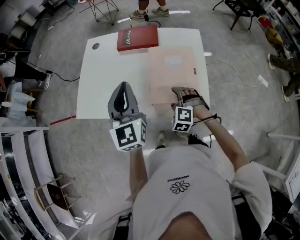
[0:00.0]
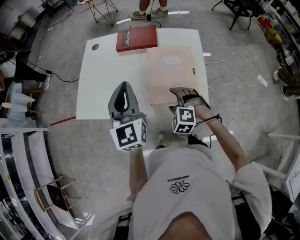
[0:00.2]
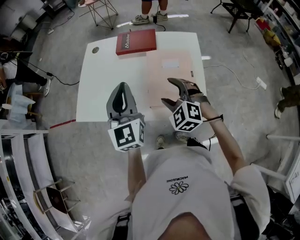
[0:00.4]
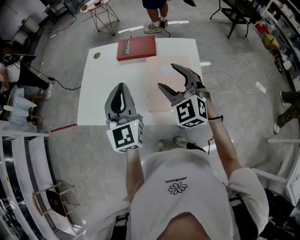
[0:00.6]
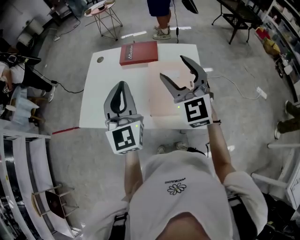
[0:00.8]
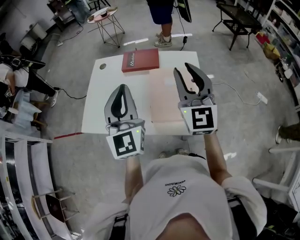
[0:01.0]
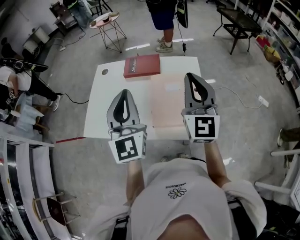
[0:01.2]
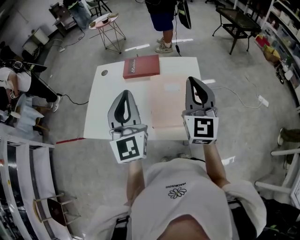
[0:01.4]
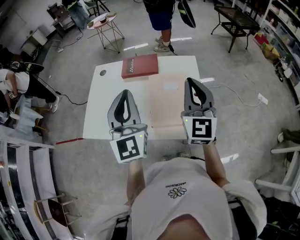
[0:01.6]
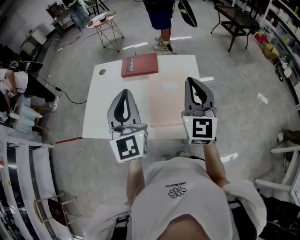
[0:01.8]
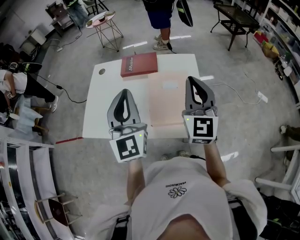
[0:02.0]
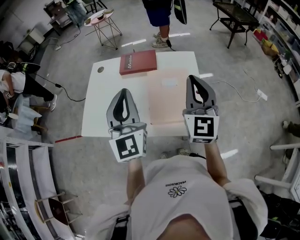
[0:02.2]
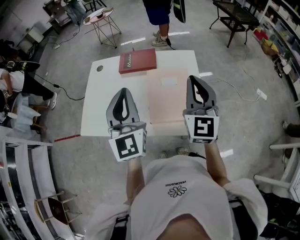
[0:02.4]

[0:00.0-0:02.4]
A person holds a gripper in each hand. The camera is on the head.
0.0 to 1.2 s: The left gripper moves upward, some 10 cm. Meanwhile the right gripper is displaced upward by about 35 cm, angles its fingers upward, by about 70 degrees, and closes its fingers.
1.2 to 2.4 s: There are only small adjustments of the grippers.

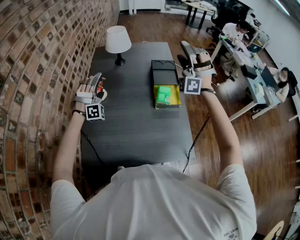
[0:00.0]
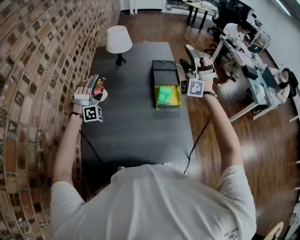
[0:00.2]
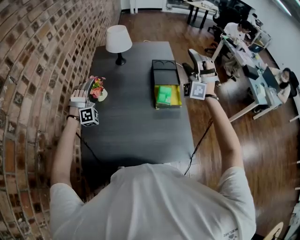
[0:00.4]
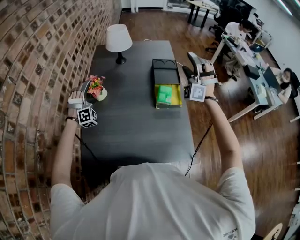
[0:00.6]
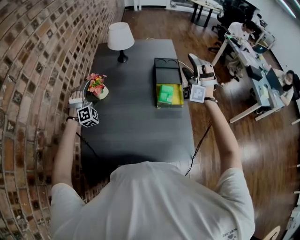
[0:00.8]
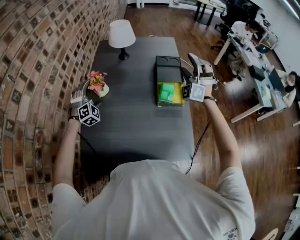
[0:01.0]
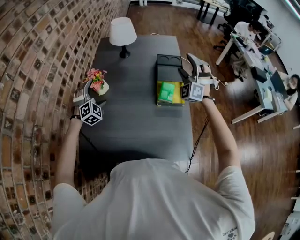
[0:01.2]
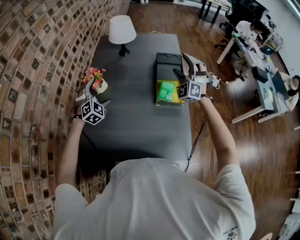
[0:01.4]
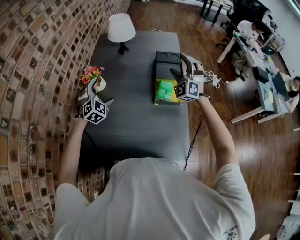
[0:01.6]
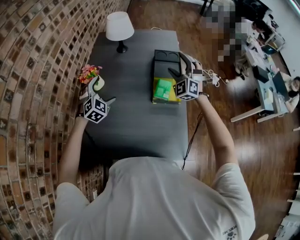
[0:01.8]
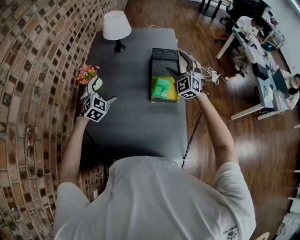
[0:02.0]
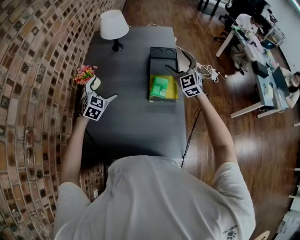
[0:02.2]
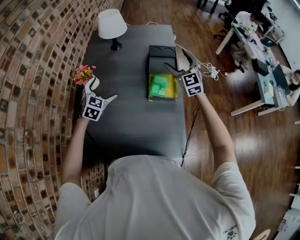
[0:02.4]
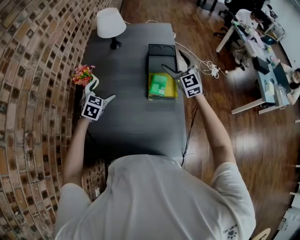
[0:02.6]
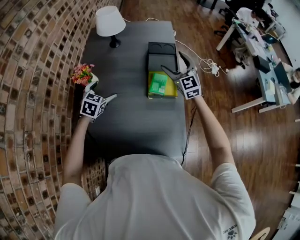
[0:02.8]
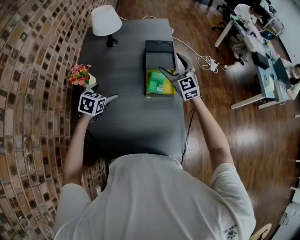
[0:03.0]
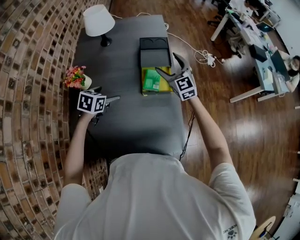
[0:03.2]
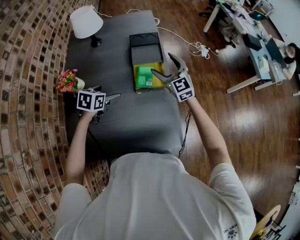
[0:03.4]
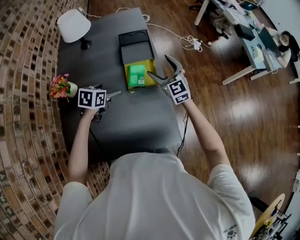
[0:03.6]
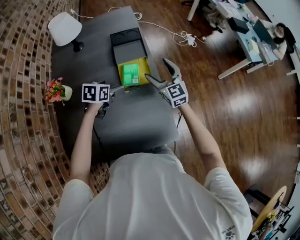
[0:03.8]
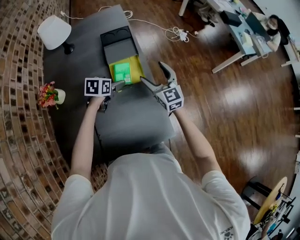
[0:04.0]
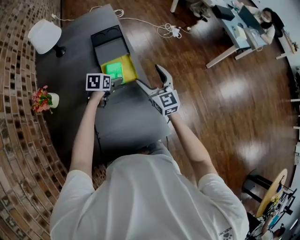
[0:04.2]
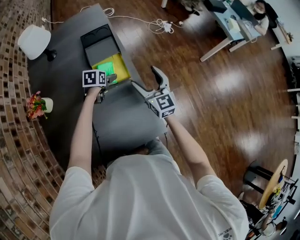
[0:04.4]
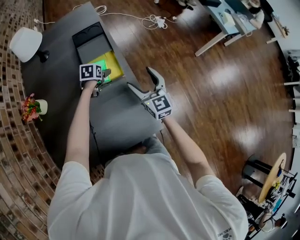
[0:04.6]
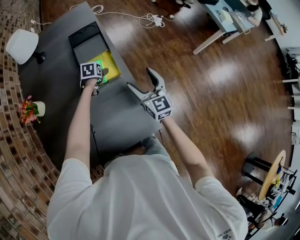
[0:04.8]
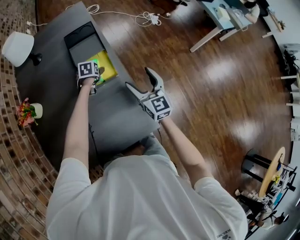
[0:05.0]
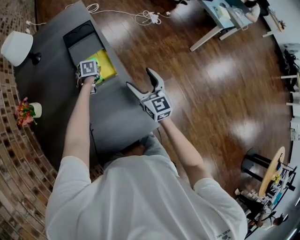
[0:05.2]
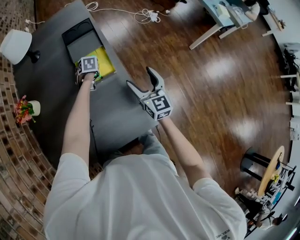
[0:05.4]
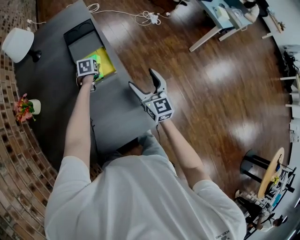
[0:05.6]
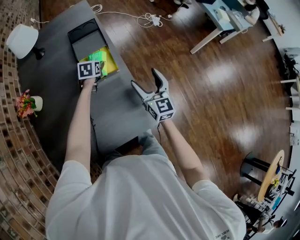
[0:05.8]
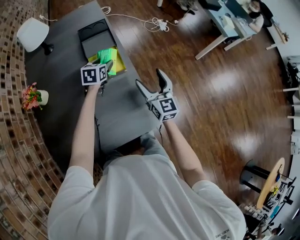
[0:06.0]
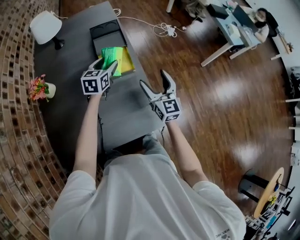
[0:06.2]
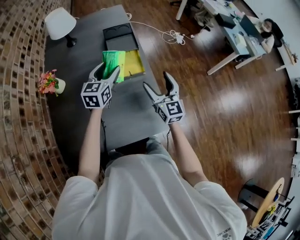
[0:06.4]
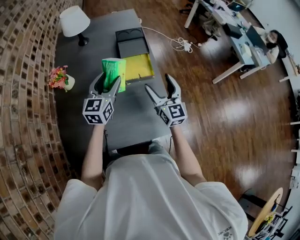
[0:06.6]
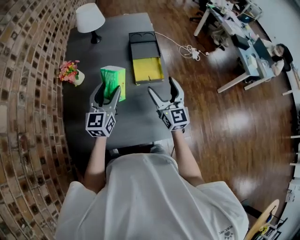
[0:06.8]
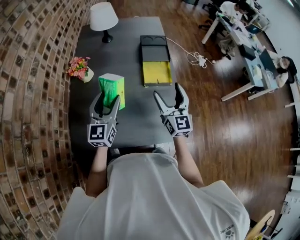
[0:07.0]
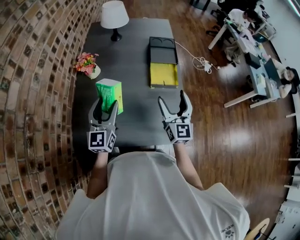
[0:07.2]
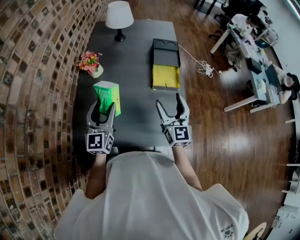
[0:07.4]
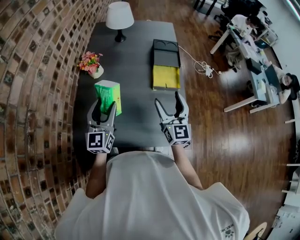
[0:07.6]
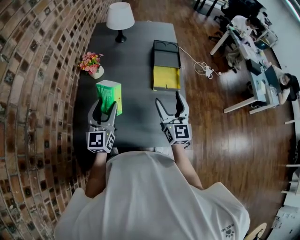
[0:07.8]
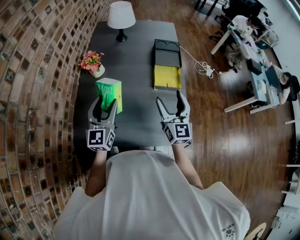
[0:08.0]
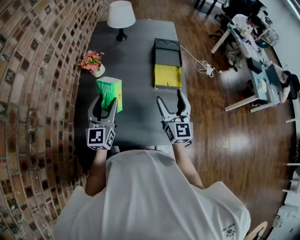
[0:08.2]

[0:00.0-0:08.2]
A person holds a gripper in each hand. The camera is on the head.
0.0 to 1.6 s: The right gripper shifts approximately 15 cm downward, and rotates approximately 40 degrees, while the left gripper moves downward, some 5 cm, and rolls counterclockwise, seen from behind, by some 40 degrees.
1.6 to 3.2 s: The left gripper shifts some 10 cm to the right and downward, and rolls counterclockwise, seen from behind, by about 40 degrees. Meanwhile the right gripper is displaced downward by roughly 5 cm, and rolls clockwise, seen from behind, by some 50 degrees.
3.2 to 5.0 s: The left gripper travels forward, downward and to the right by about 30 cm, while the right gripper moves to the right, backward and downward, approximately 20 cm, and turns by some 30 degrees.
5.0 to 6.6 s: The right gripper goes about 15 cm to the left, upward and backward. Meanwhile the left gripper travels upward and backward by about 35 cm, angles its fingers upward, by some 60 degrees, and closes up.
6.6 to 8.2 s: The left gripper heads to the left and backward, covering about 25 cm, and changes its angle by approximately 20 degrees. Meanwhile the right gripper is displaced to the left by roughly 10 cm.

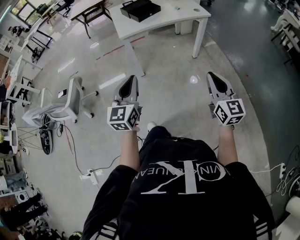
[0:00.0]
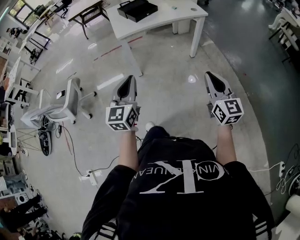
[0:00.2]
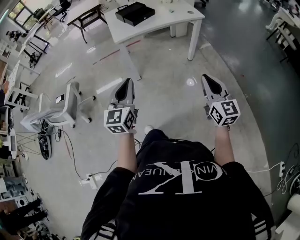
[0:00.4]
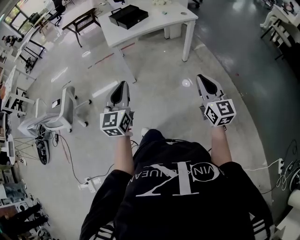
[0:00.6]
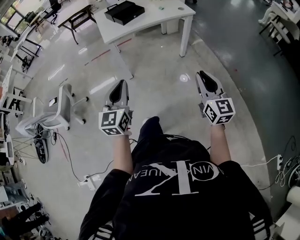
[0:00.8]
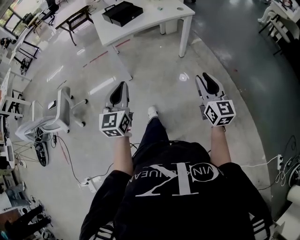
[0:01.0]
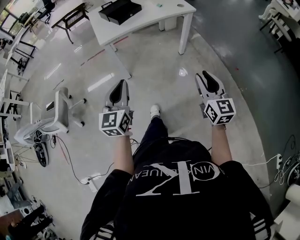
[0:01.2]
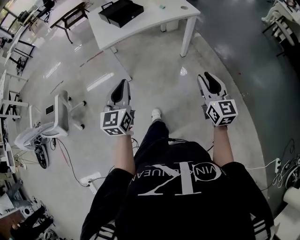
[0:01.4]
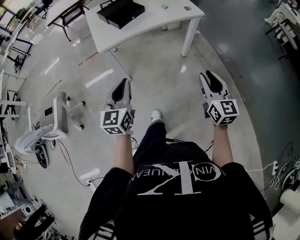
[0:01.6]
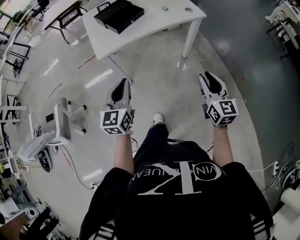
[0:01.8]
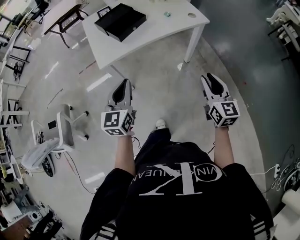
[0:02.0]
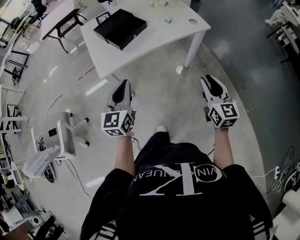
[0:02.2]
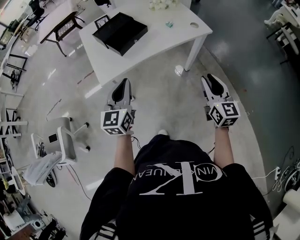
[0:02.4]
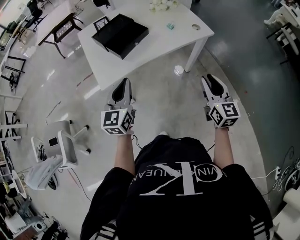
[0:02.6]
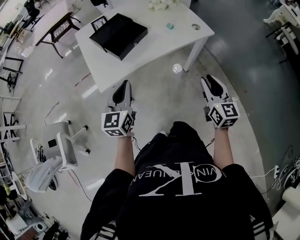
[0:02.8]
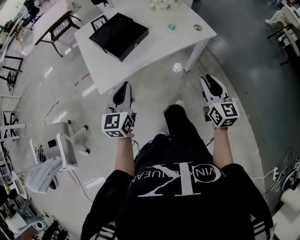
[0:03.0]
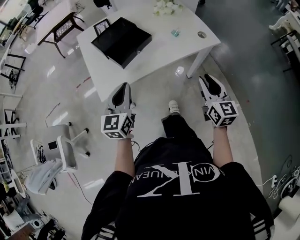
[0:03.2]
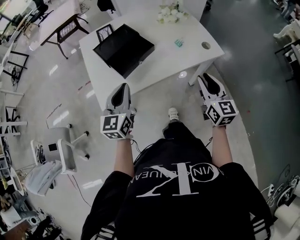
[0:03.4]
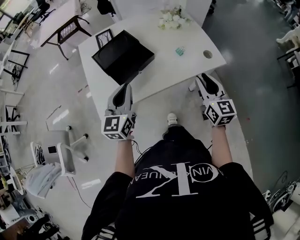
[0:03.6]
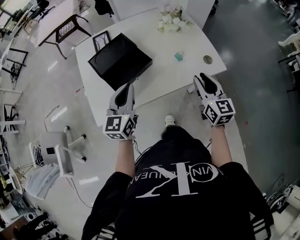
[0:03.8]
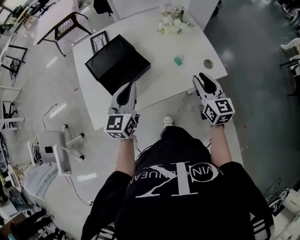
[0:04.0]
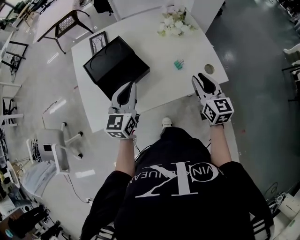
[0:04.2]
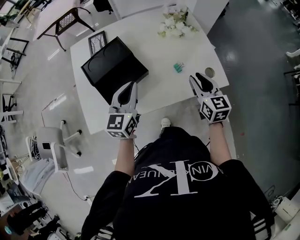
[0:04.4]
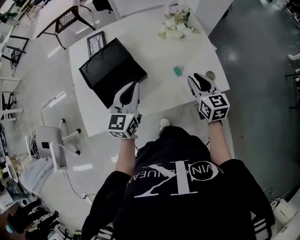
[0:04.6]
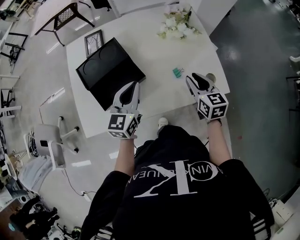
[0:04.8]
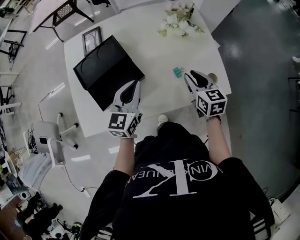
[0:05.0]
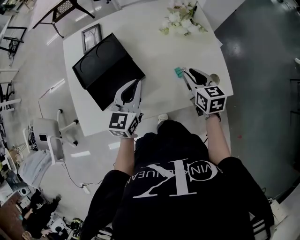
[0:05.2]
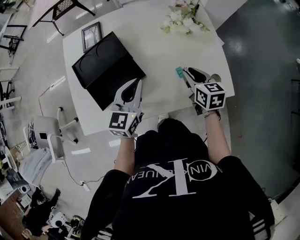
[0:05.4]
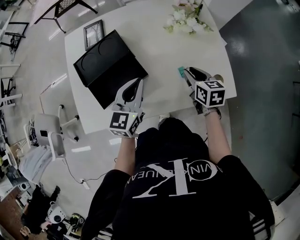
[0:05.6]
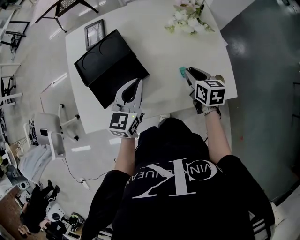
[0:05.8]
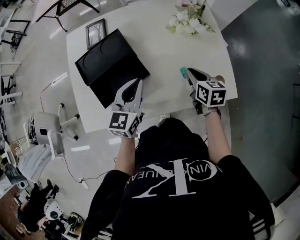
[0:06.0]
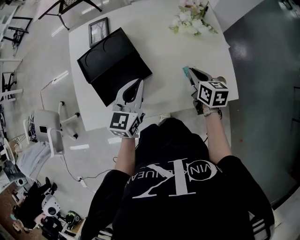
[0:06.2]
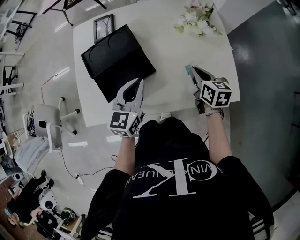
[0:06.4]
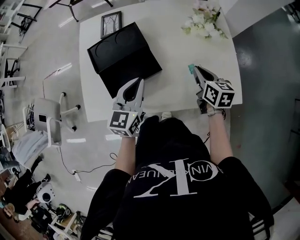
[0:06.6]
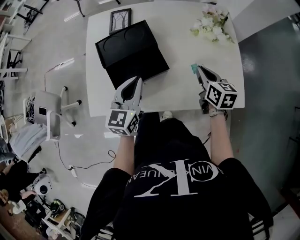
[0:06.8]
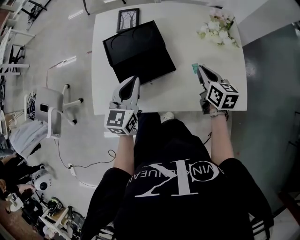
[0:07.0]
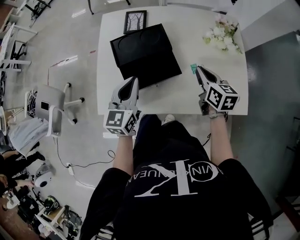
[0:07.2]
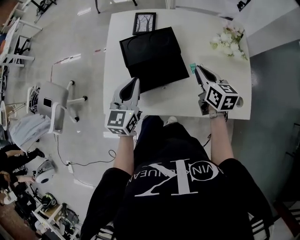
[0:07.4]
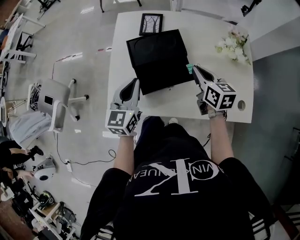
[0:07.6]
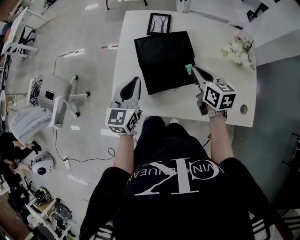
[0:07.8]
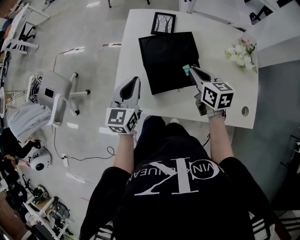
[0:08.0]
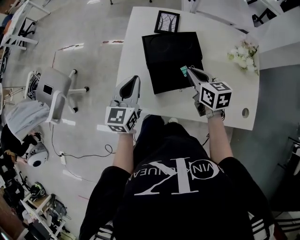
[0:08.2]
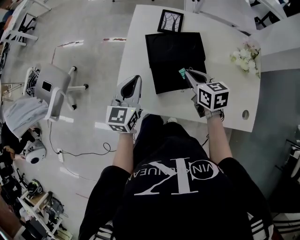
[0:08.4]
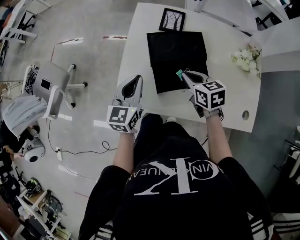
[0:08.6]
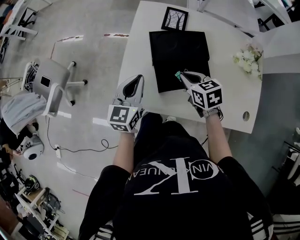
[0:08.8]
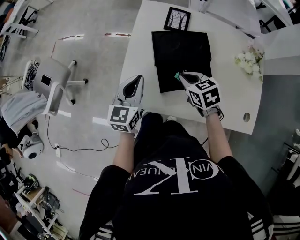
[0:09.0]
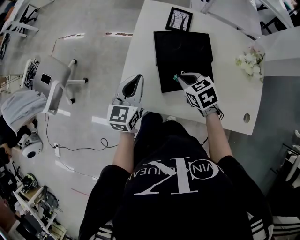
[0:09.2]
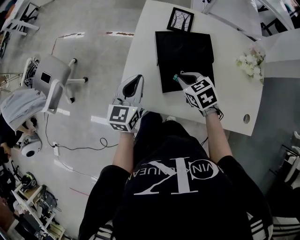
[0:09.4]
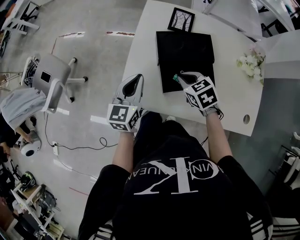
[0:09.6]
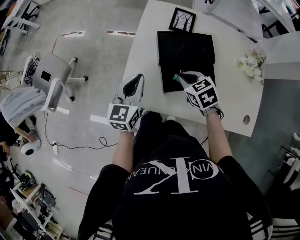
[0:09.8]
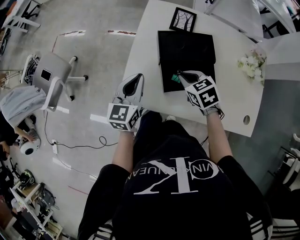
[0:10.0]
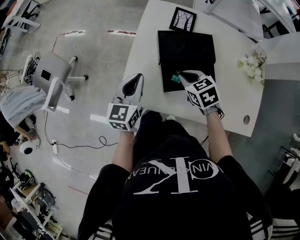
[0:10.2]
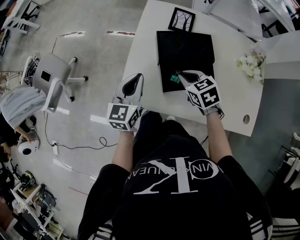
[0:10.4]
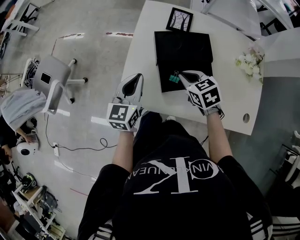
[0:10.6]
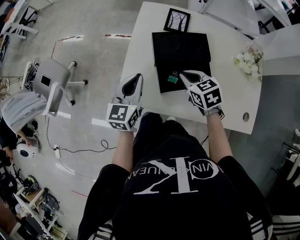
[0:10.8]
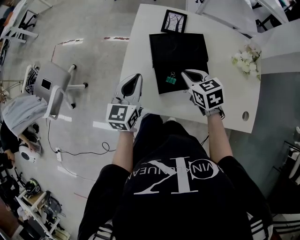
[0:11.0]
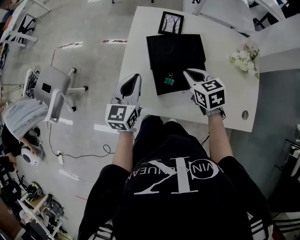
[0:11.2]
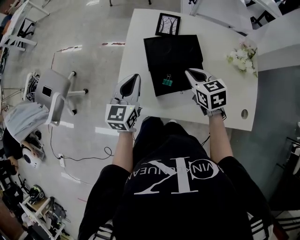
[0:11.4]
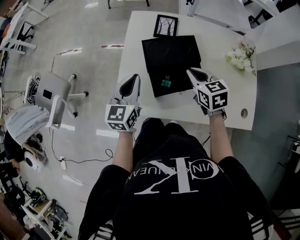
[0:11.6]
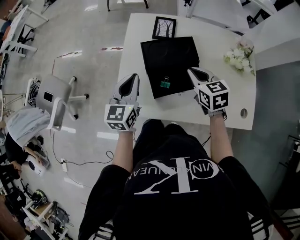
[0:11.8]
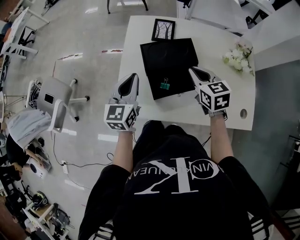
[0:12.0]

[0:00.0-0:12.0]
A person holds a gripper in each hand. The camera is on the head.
0.0 to 1.6 s: Both grippers move forward, roughly 20 cm.
1.6 to 3.0 s: The grippers both shift forward by roughly 25 cm.
3.0 to 4.4 s: Both grippers move forward, some 30 cm.
4.4 to 6.0 s: The left gripper moves roughly 5 cm. The right gripper heads downward and forward, covering some 15 cm, and changes its angle by about 20 degrees.
6.0 to 7.6 s: The left gripper shifts about 20 cm to the left; the right gripper goes approximately 20 cm to the left and upward.
7.6 to 9.0 s: The left gripper goes some 5 cm to the left. Meanwhile the right gripper is displaced to the left and downward by roughly 15 cm, and swivels some 40 degrees.
9.0 to 10.4 s: There are only small adjustments of the grippers.
10.4 to 12.0 s: The left gripper moves some 5 cm. Meanwhile the right gripper shifts roughly 10 cm to the right and upward, and swivels roughly 20 degrees.

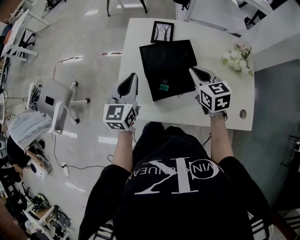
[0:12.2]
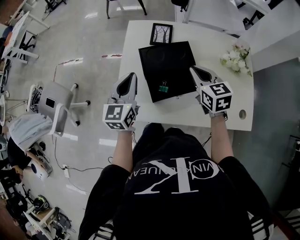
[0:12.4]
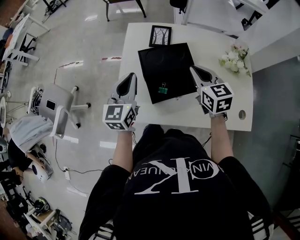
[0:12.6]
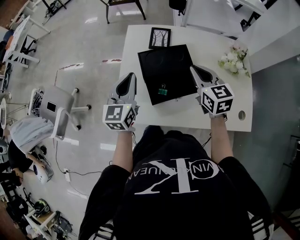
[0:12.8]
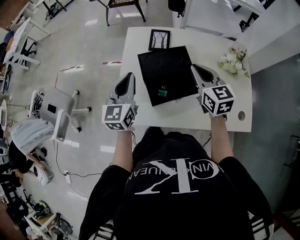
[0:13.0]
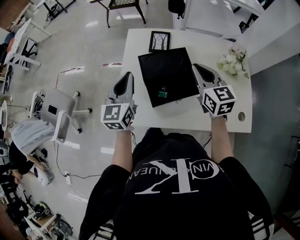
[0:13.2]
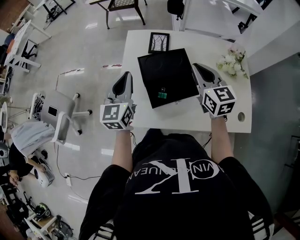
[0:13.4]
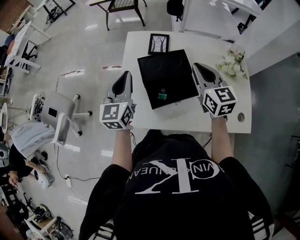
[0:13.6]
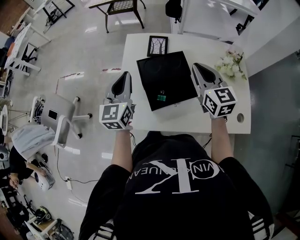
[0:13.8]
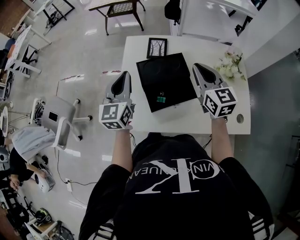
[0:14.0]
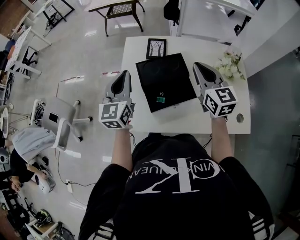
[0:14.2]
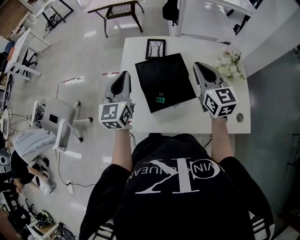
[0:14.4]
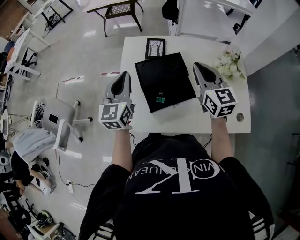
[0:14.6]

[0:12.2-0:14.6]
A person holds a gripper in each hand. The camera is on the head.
12.2 to 13.4 s: The right gripper heads upward, covering some 5 cm; the left gripper changes place by some 5 cm.
13.4 to 14.6 s: The grippers stay close to where they were, moving slightly.
